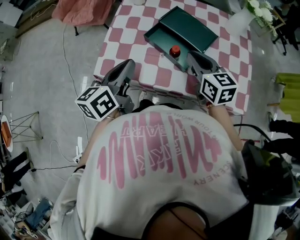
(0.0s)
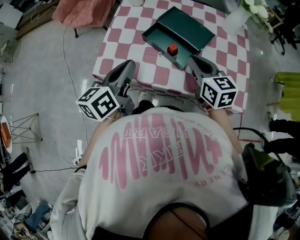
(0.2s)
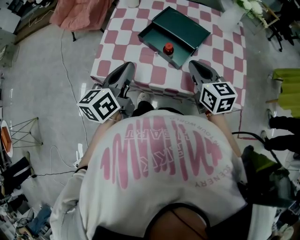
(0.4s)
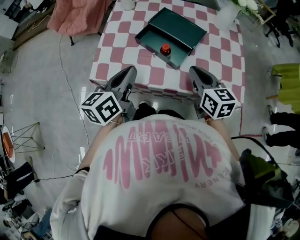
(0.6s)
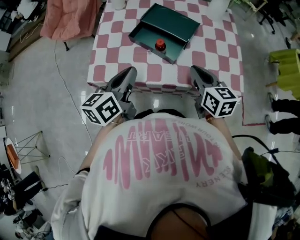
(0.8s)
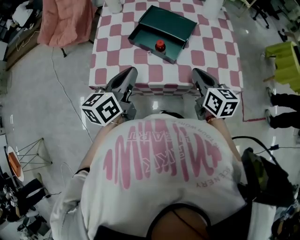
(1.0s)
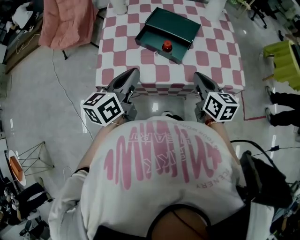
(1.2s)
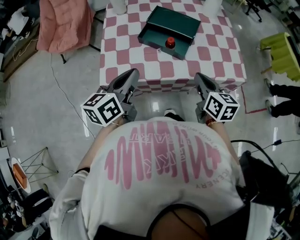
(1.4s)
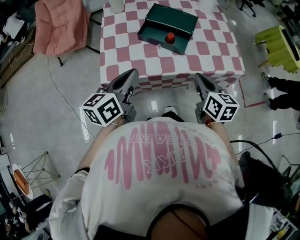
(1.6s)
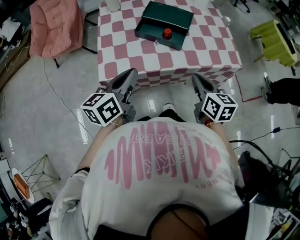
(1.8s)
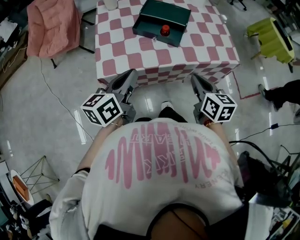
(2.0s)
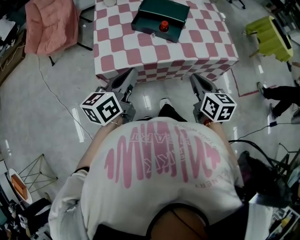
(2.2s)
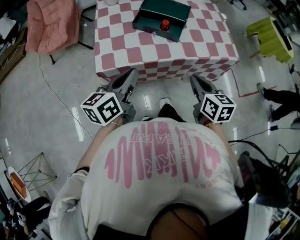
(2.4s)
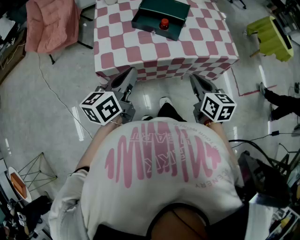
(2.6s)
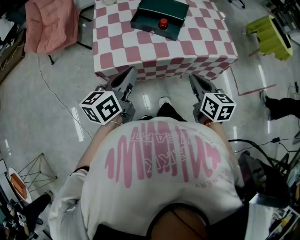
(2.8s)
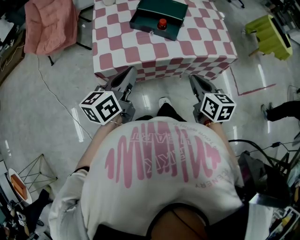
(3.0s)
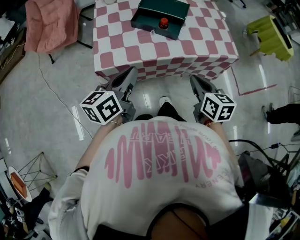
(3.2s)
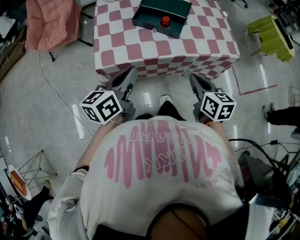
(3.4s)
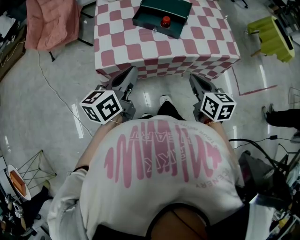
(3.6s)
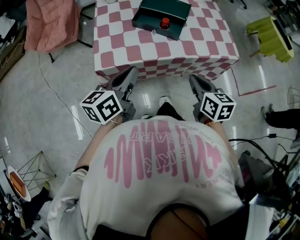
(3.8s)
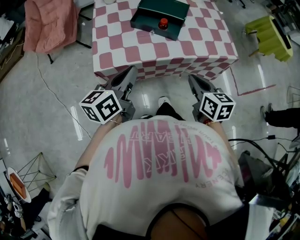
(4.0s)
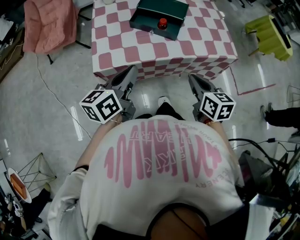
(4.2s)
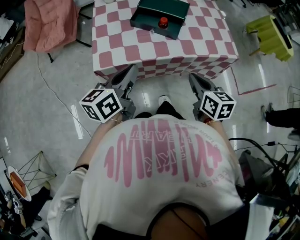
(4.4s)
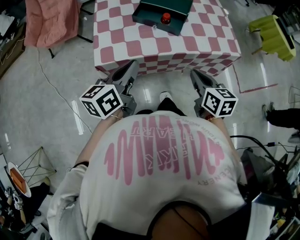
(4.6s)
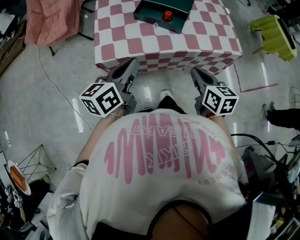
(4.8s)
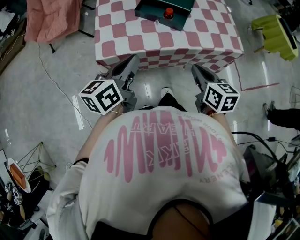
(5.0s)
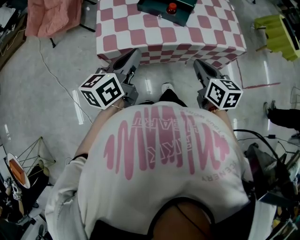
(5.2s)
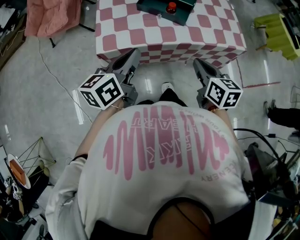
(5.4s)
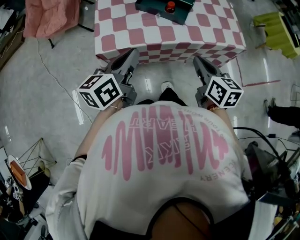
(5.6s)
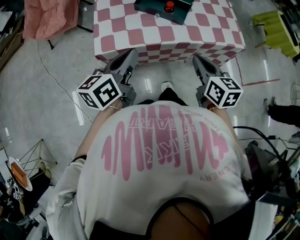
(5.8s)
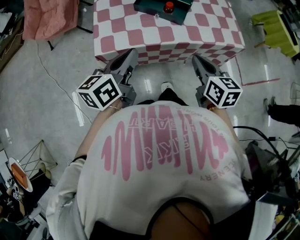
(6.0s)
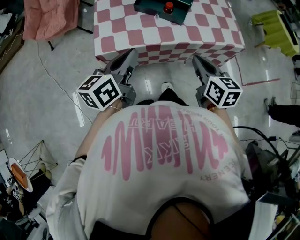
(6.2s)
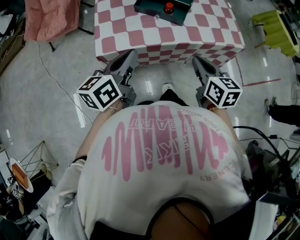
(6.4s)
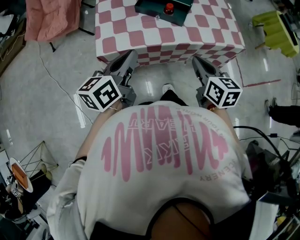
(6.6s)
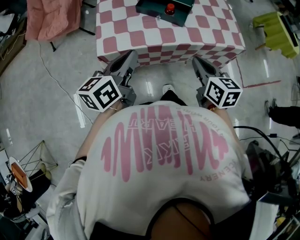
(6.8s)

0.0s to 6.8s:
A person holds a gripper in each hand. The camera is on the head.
0.0s to 1.4s: The right gripper moves backward, about 15 cm, and changes its angle by some 30 degrees.
1.4s to 2.8s: The left gripper goes some 5 cm backward; the right gripper heads backward, covering roughly 10 cm.
2.8s to 4.0s: Both grippers stay put.
4.0s to 5.4s: The two grippers keep their place.
5.4s to 6.8s: There are only small adjustments of the grippers.

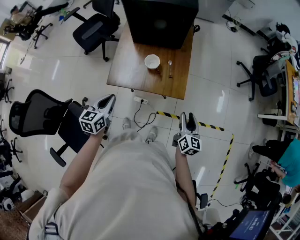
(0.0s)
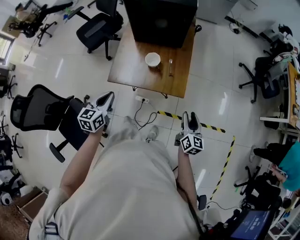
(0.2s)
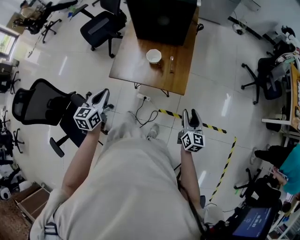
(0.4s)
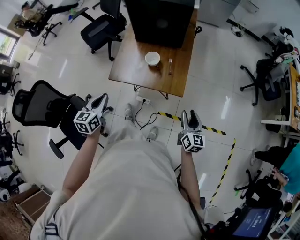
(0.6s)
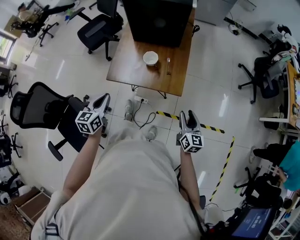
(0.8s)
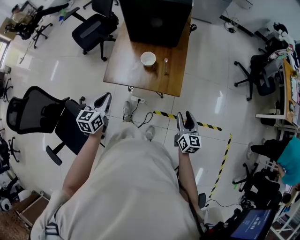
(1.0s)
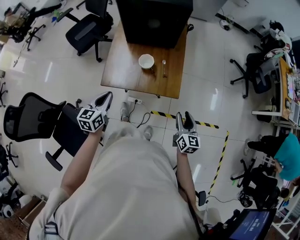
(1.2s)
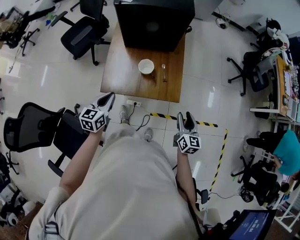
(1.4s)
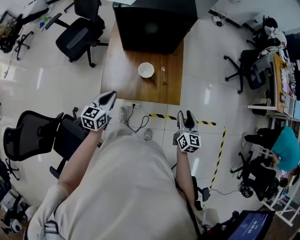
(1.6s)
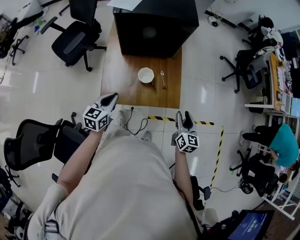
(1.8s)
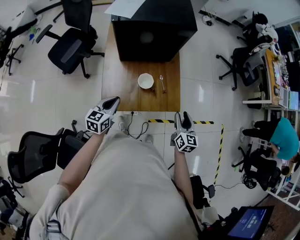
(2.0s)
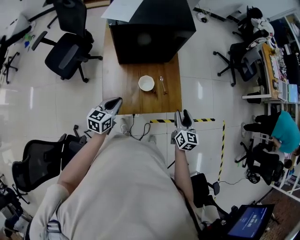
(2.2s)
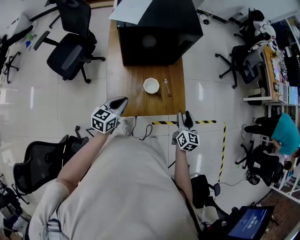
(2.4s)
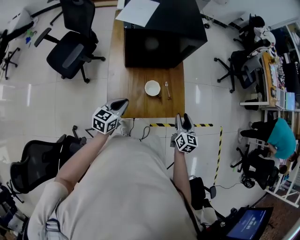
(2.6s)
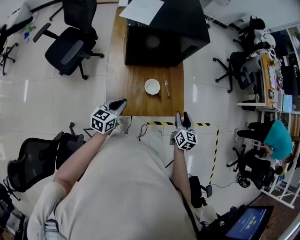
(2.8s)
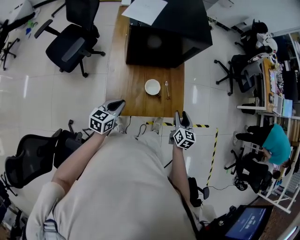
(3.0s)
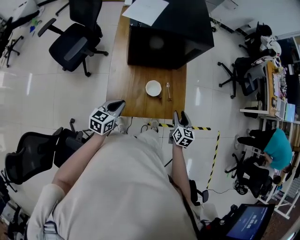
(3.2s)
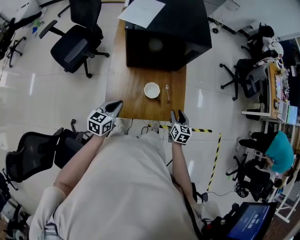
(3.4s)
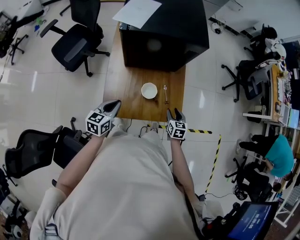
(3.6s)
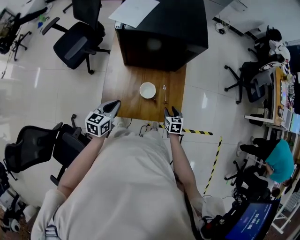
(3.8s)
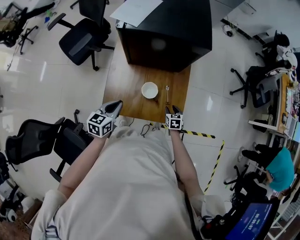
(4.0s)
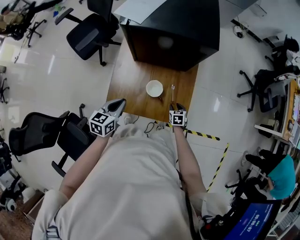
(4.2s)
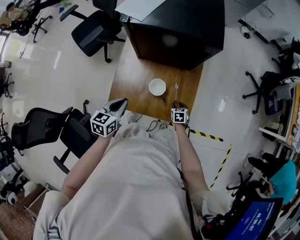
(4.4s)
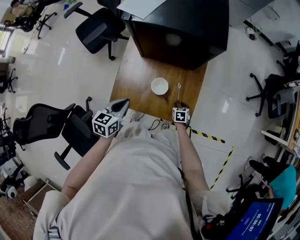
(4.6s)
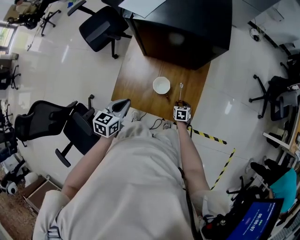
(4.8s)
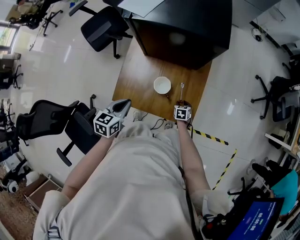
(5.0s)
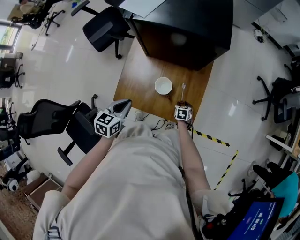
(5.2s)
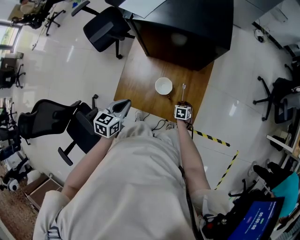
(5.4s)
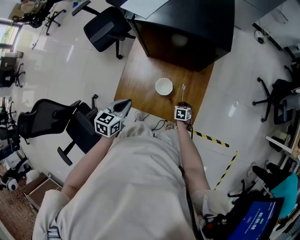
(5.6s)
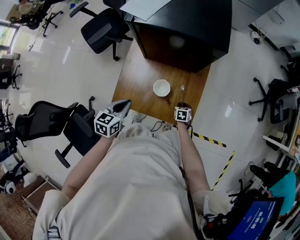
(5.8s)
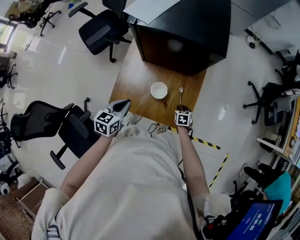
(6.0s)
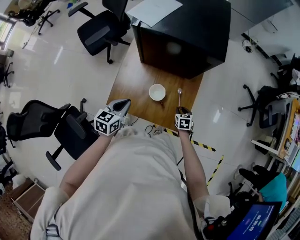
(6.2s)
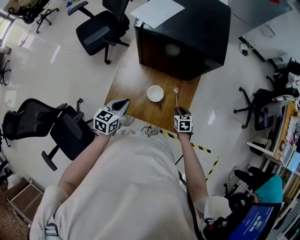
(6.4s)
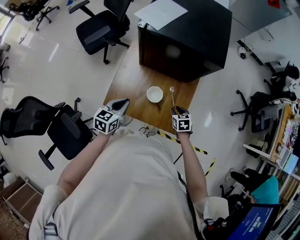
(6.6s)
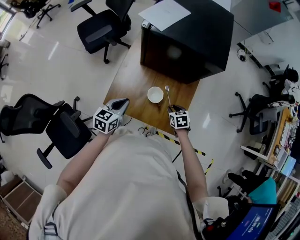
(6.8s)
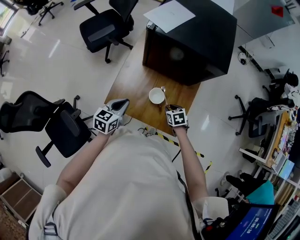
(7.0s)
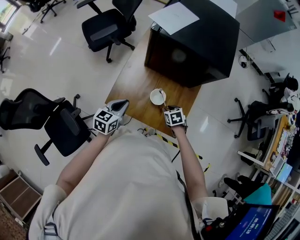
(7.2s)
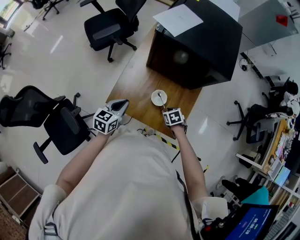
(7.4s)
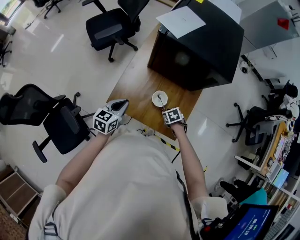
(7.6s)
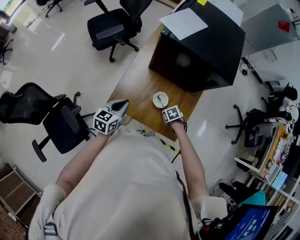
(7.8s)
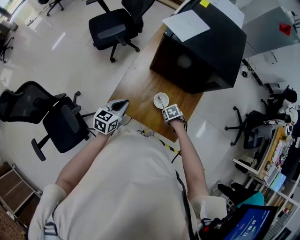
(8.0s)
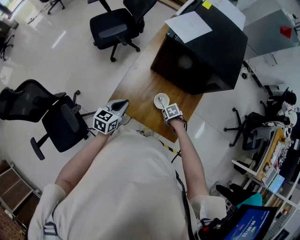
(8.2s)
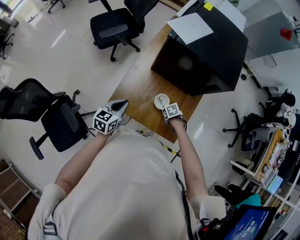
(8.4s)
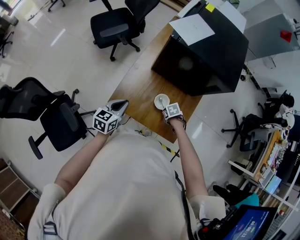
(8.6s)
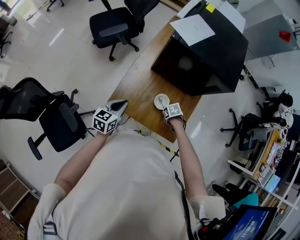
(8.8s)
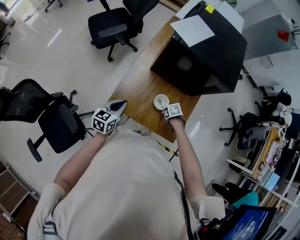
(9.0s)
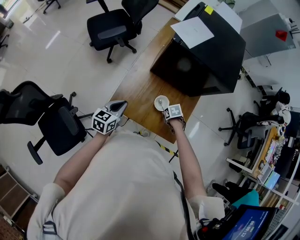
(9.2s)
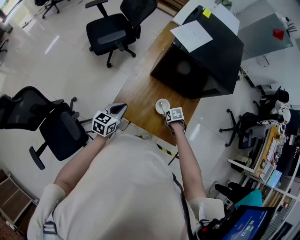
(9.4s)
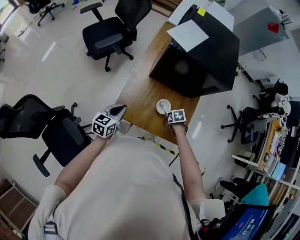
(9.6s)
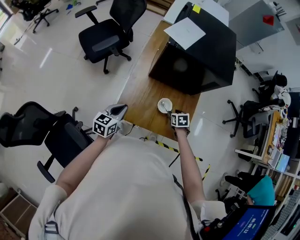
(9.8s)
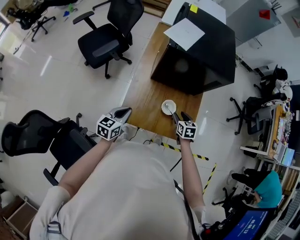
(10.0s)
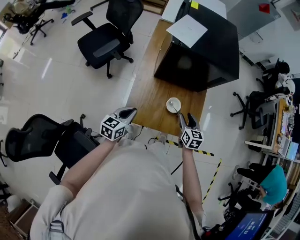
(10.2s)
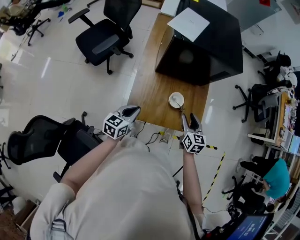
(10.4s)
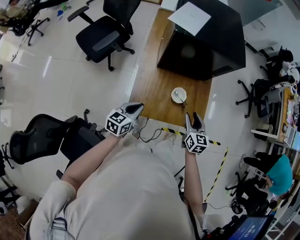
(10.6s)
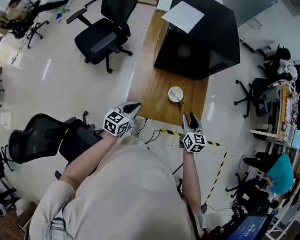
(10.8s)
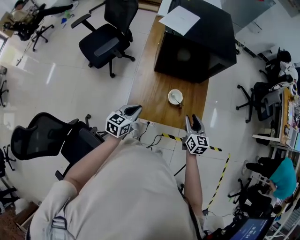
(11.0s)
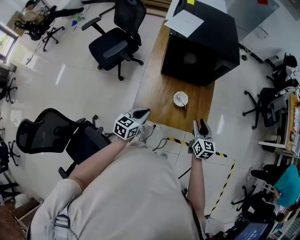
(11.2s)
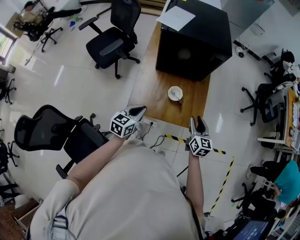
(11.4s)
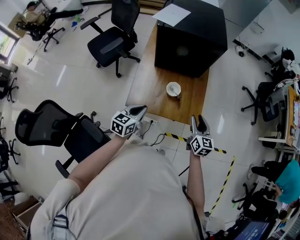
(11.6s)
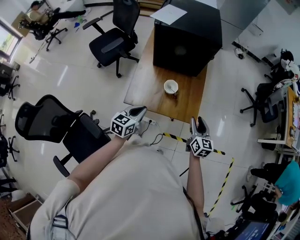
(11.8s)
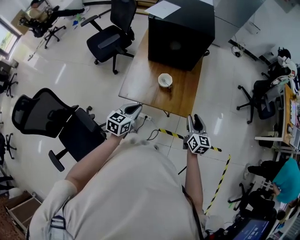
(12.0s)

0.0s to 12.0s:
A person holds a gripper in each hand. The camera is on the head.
0.0s to 1.6s: The right gripper shifts about 5 cm forward; the left gripper shifts roughly 10 cm forward.
1.6s to 3.0s: Both grippers travel together to the left and forward, approximately 10 cm.
3.0s to 4.4s: The right gripper moves downward, roughly 25 cm, and tilts its fingers roughly 30 degrees downward; the left gripper is displaced to the right by about 5 cm, and rotates approximately 20 degrees.
4.4s to 6.0s: The grippers stay close to where they were, moving slightly.
6.0s to 7.6s: The right gripper moves roughly 15 cm, and swivels roughly 30 degrees.
7.6s to 9.0s: The grippers make only small movements.
9.0s to 10.4s: The right gripper travels upward by roughly 20 cm, and points its fingers some 50 degrees further upward.
10.4s to 12.0s: Both grippers travel together to the right and backward, approximately 20 cm.

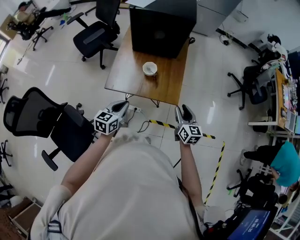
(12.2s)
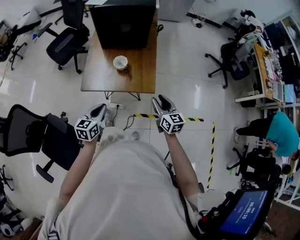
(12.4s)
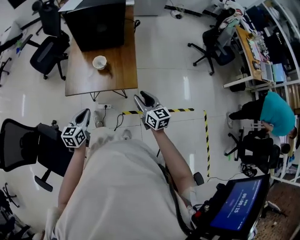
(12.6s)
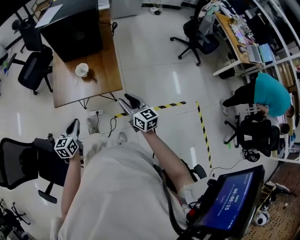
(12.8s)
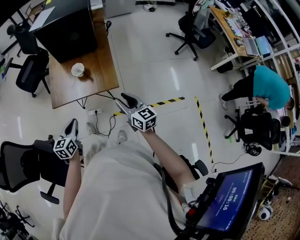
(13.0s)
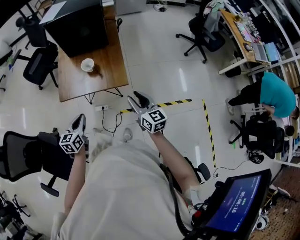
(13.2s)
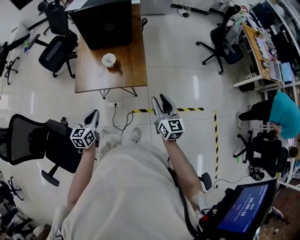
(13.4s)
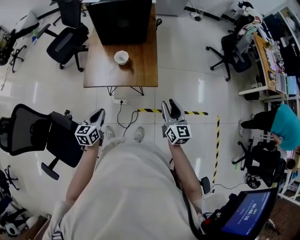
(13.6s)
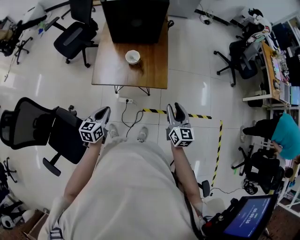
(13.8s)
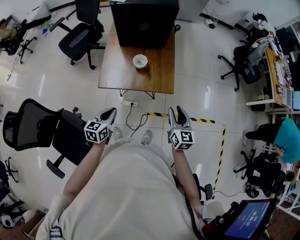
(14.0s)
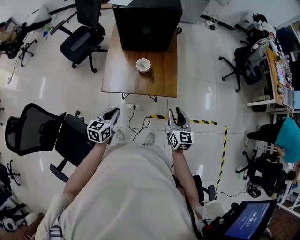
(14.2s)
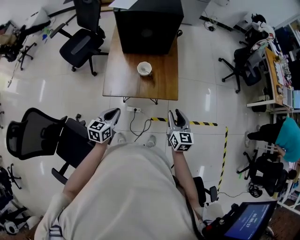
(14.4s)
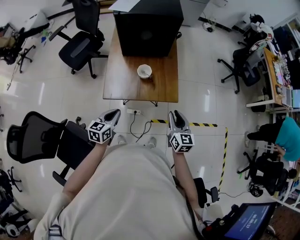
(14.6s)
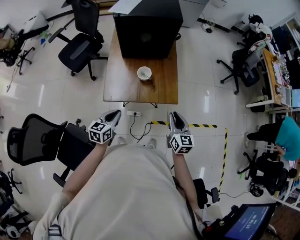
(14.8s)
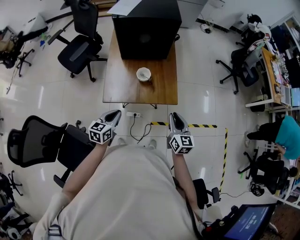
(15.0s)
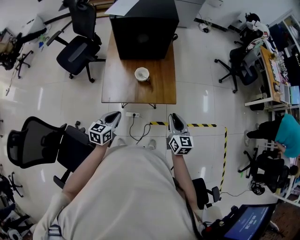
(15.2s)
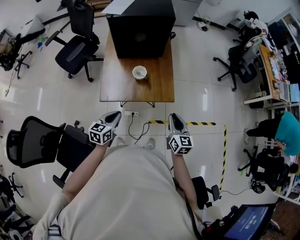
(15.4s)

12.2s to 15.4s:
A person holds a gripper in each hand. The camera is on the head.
12.2s to 13.8s: Both grippers travel together backward, roughly 10 cm.
13.8s to 15.4s: The right gripper moves to the left, roughly 5 cm, and closes up. The left gripper moves forward, roughly 5 cm.

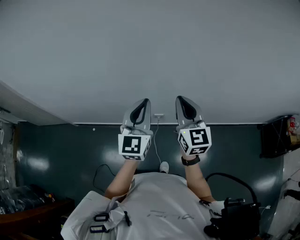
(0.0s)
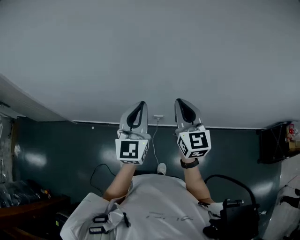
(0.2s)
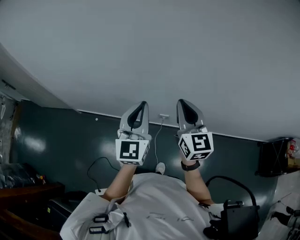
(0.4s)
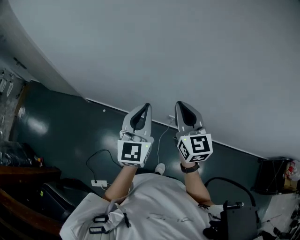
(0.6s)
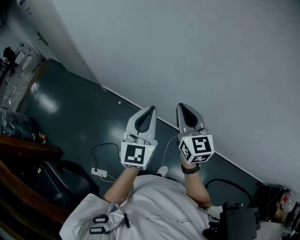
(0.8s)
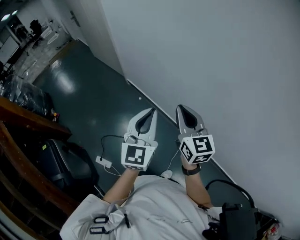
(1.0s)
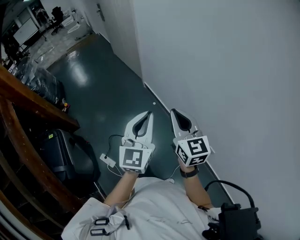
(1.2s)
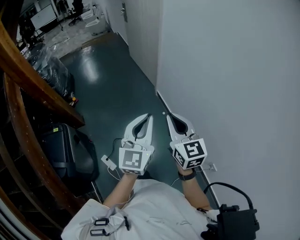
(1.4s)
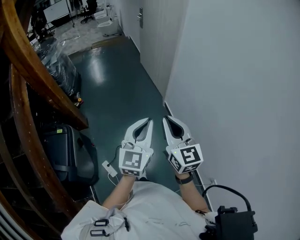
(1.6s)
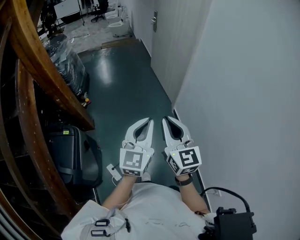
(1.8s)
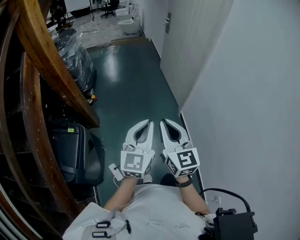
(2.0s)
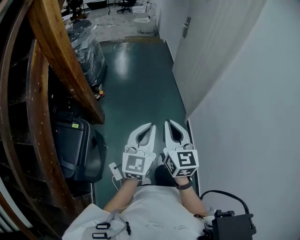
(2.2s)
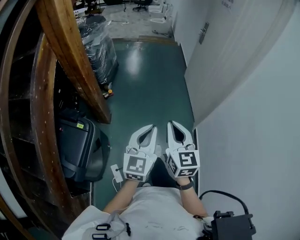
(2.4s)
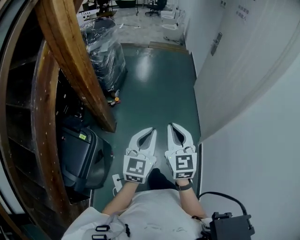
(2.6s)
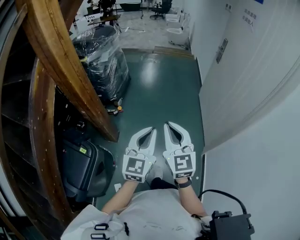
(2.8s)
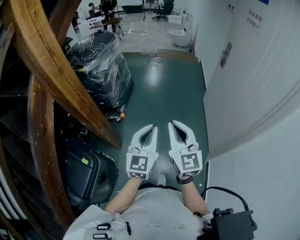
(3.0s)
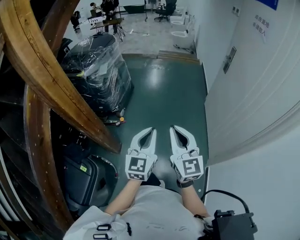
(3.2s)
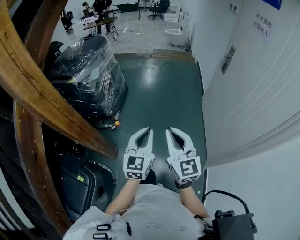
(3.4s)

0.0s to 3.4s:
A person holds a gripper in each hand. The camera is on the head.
0.0s to 1.6s: The two grippers travel together, some 60 cm. The right gripper changes its angle by some 70 degrees. The left gripper turns by some 60 degrees.
1.6s to 3.4s: The two grippers travel together, some 70 cm. The right gripper changes its angle by about 30 degrees, while the left gripper swivels some 30 degrees.
